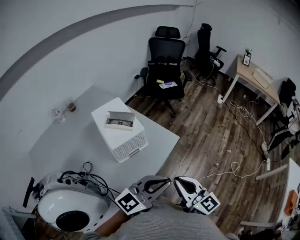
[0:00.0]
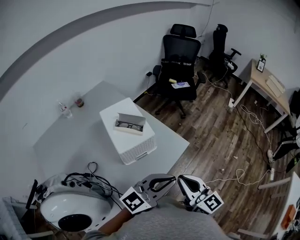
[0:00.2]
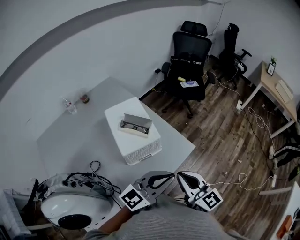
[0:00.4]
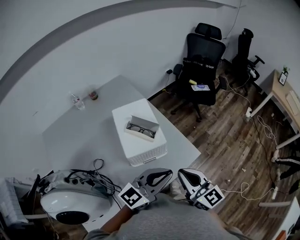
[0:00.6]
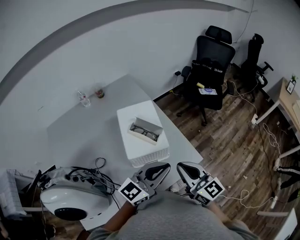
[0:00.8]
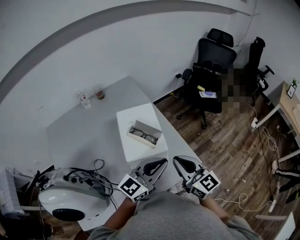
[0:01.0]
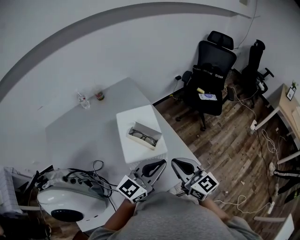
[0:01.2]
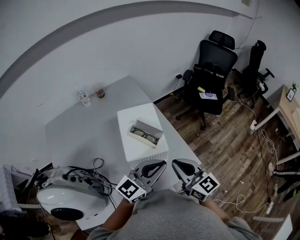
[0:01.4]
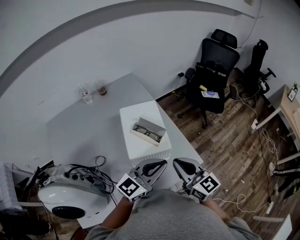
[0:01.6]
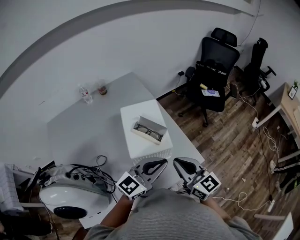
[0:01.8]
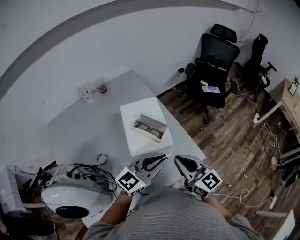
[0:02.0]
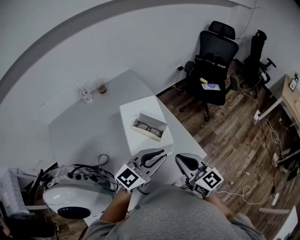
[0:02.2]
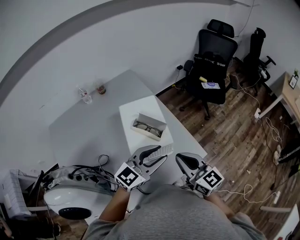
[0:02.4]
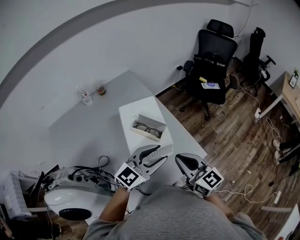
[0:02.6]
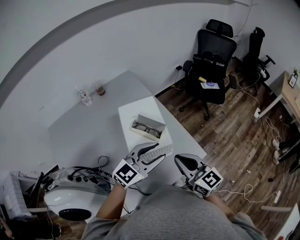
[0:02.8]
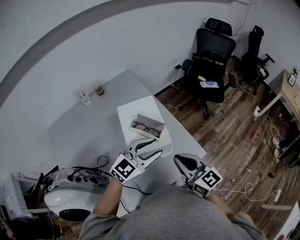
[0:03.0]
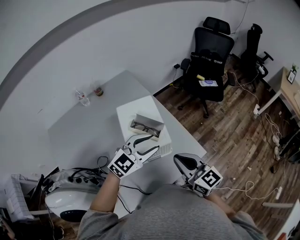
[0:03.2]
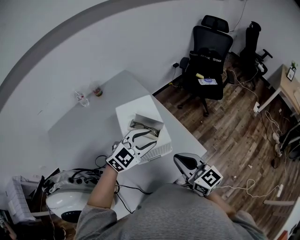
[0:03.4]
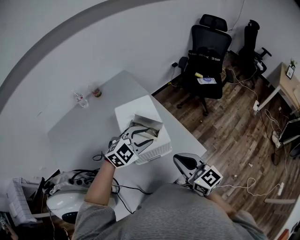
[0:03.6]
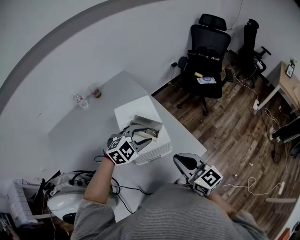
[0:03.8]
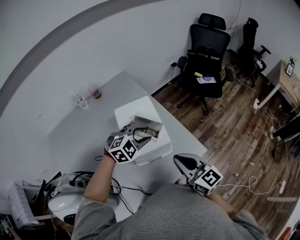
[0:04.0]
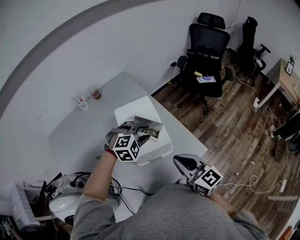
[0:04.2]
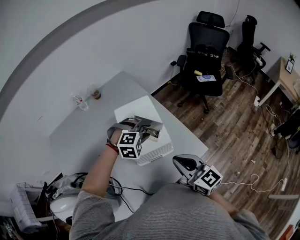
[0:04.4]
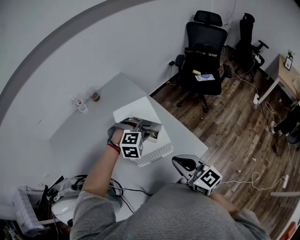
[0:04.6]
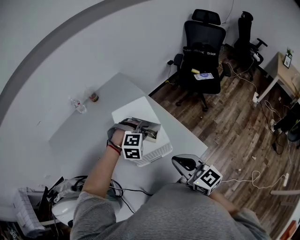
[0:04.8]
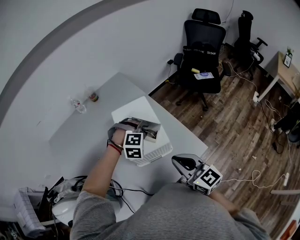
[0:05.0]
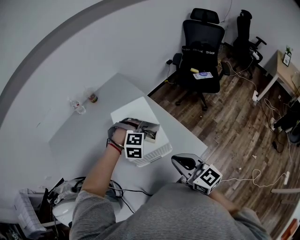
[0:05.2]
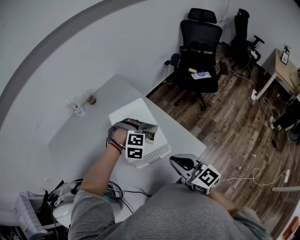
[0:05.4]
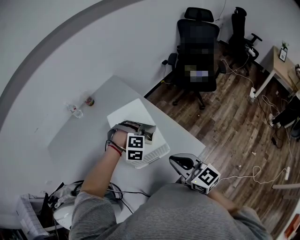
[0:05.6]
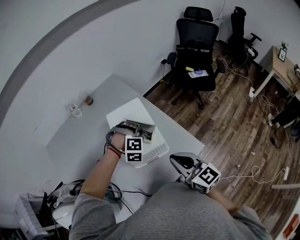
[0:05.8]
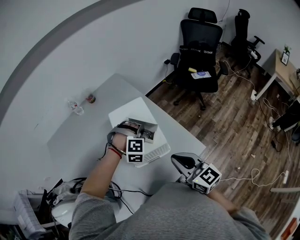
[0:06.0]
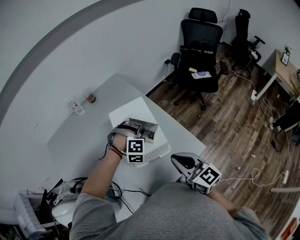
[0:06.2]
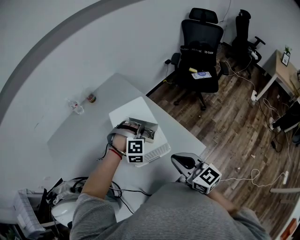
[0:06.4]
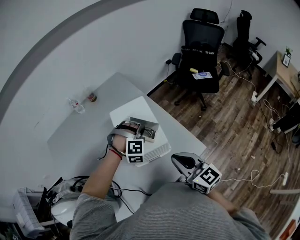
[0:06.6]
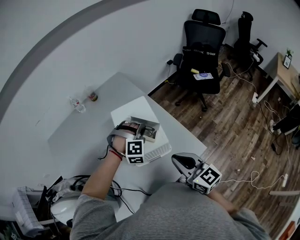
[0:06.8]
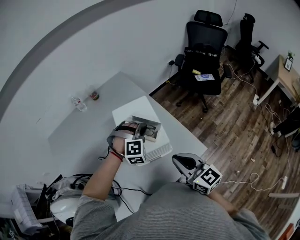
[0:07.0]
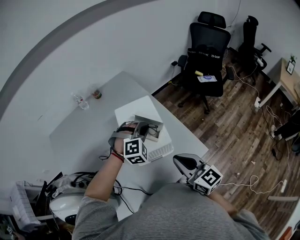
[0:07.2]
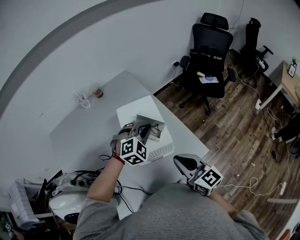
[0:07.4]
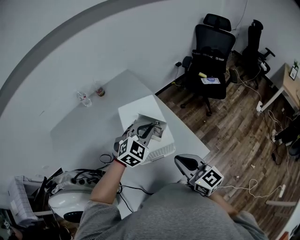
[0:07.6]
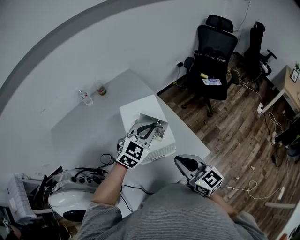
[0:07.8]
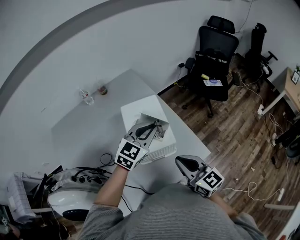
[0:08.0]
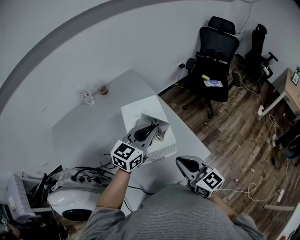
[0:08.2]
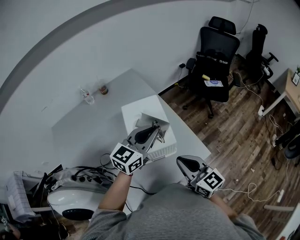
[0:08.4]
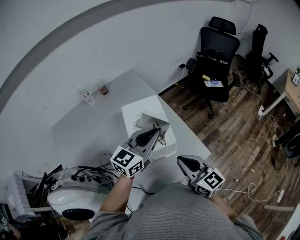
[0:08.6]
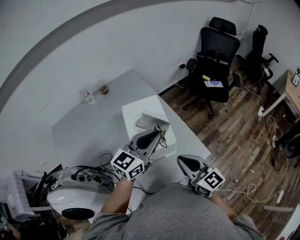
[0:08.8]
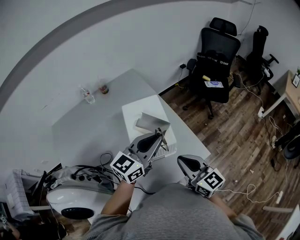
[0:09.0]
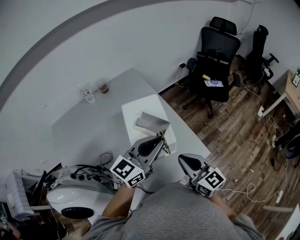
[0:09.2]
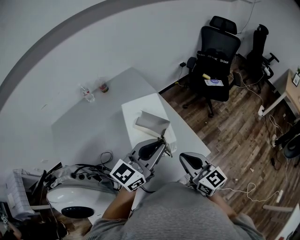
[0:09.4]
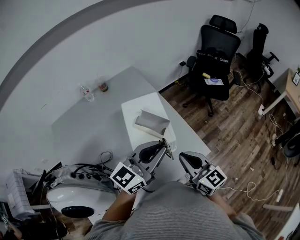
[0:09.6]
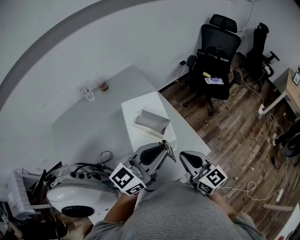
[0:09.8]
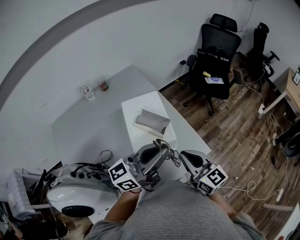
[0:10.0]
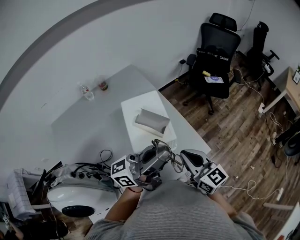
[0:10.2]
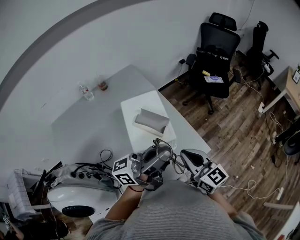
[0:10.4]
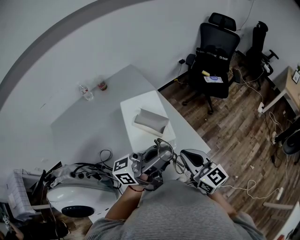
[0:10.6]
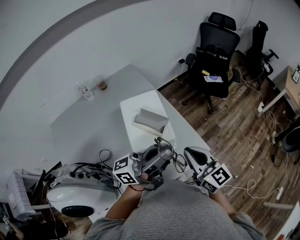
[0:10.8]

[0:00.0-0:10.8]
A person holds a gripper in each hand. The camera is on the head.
0:00.0 to 0:01.6: The right gripper shifts by about 25 cm, and changes its angle by approximately 20 degrees. The left gripper changes place by approximately 25 cm, and changes its angle by about 30 degrees.
0:01.6 to 0:03.0: The left gripper shifts by about 5 cm, turns by about 20 degrees, and opens up.
0:03.0 to 0:04.6: The left gripper heads forward and downward, covering about 15 cm, and tilts its fingers some 40 degrees downward.
0:04.6 to 0:06.2: The left gripper closes up.
0:06.2 to 0:07.8: The left gripper is displaced upward by approximately 10 cm, and rotates around the line of its fingers by roughly 60 degrees, counterclockwise from behind.
0:07.8 to 0:09.2: The left gripper travels backward and upward by about 10 cm, and changes its angle by some 40 degrees.
0:09.2 to 0:10.8: The left gripper heads upward, covering roughly 5 cm, and tilts its fingers roughly 30 degrees upward.

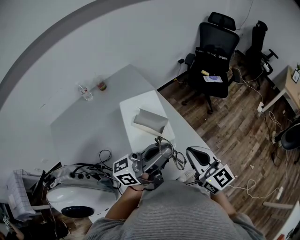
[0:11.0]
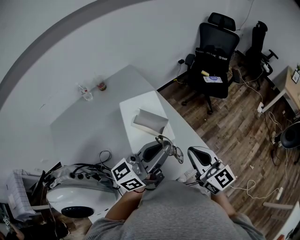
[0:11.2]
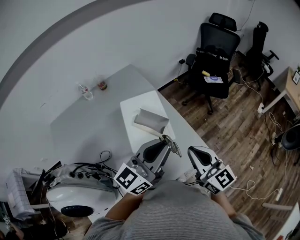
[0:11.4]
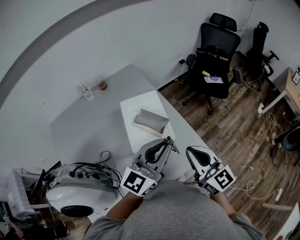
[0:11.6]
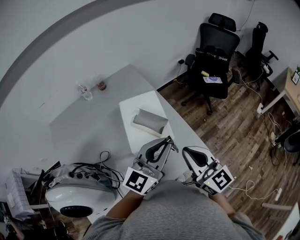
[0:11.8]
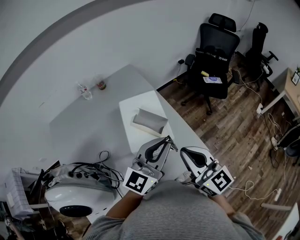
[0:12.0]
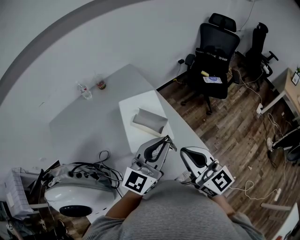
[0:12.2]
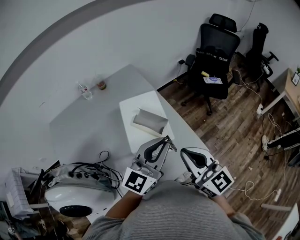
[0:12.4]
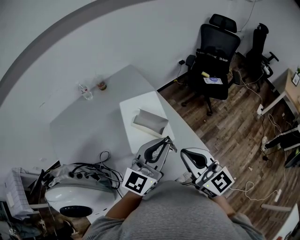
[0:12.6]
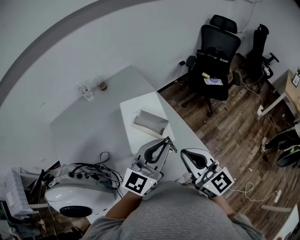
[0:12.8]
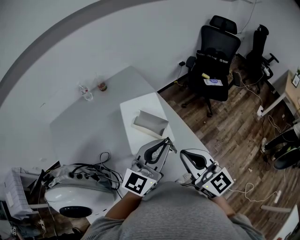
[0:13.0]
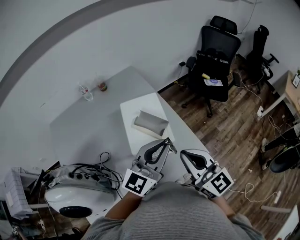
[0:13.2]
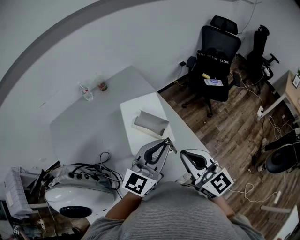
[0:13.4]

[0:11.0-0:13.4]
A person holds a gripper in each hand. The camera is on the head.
0:11.0 to 0:12.2: The right gripper moves some 5 cm. The left gripper rolls clockwise, seen from behind, by some 50 degrees.
0:12.2 to 0:13.4: The two grippers keep their place.

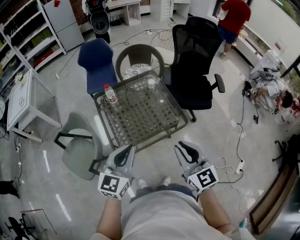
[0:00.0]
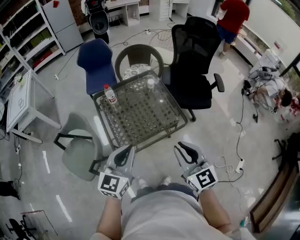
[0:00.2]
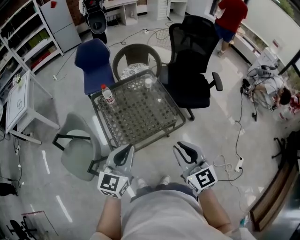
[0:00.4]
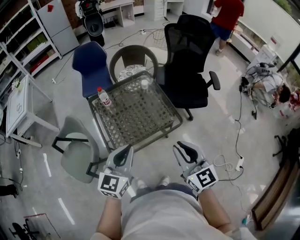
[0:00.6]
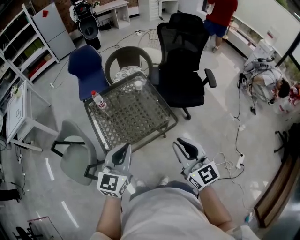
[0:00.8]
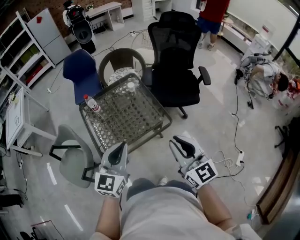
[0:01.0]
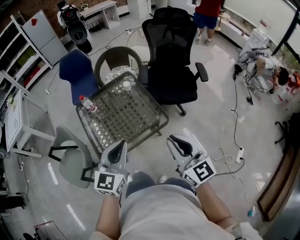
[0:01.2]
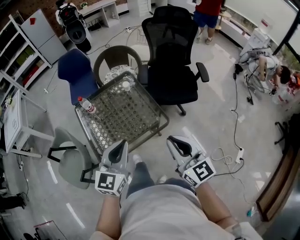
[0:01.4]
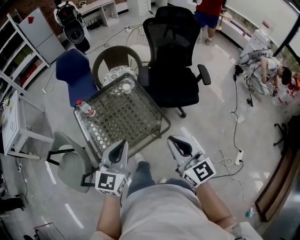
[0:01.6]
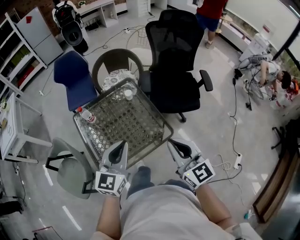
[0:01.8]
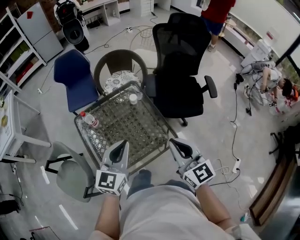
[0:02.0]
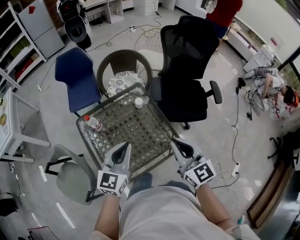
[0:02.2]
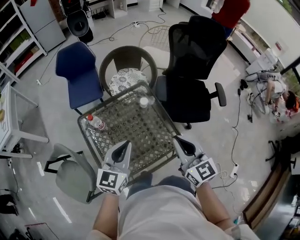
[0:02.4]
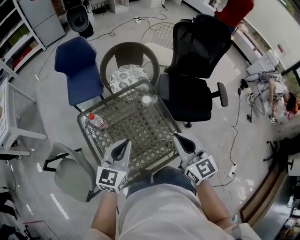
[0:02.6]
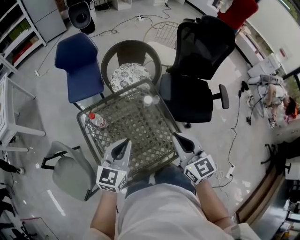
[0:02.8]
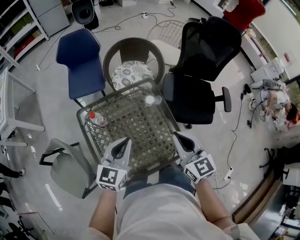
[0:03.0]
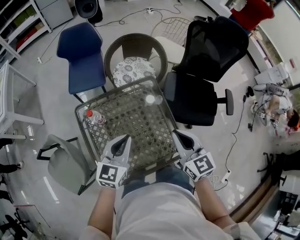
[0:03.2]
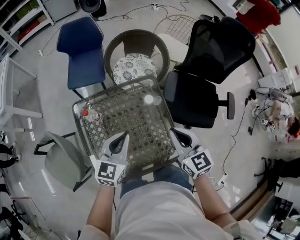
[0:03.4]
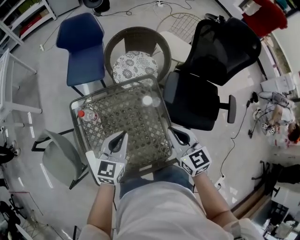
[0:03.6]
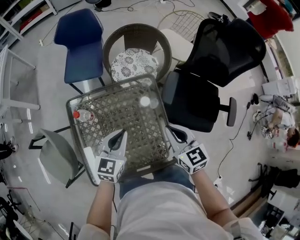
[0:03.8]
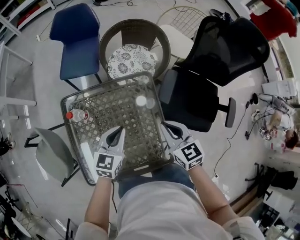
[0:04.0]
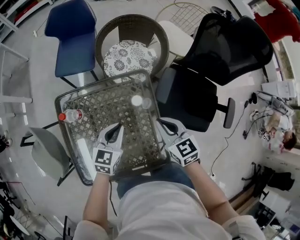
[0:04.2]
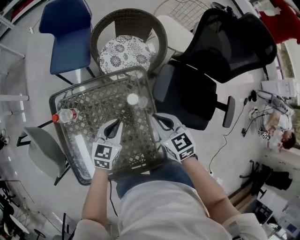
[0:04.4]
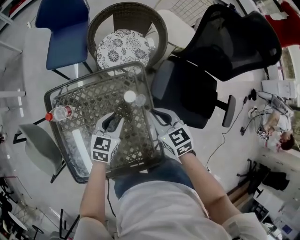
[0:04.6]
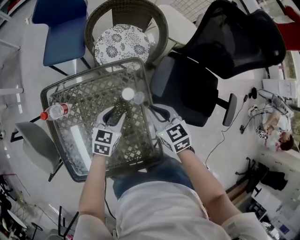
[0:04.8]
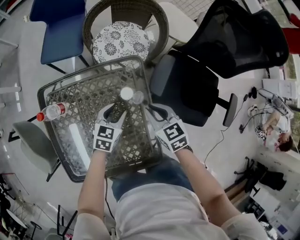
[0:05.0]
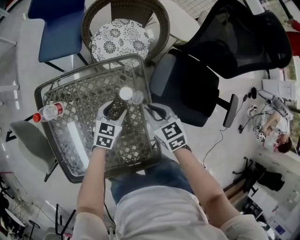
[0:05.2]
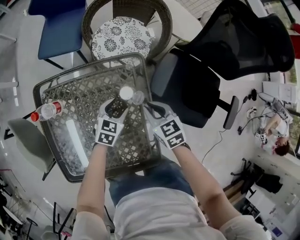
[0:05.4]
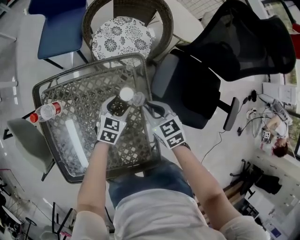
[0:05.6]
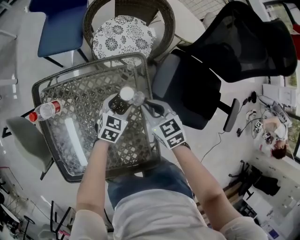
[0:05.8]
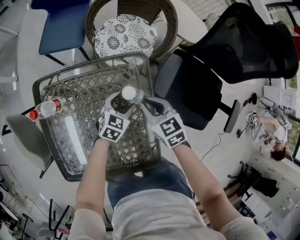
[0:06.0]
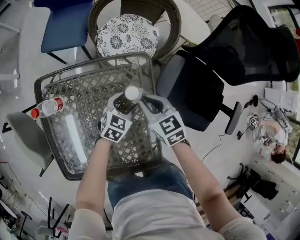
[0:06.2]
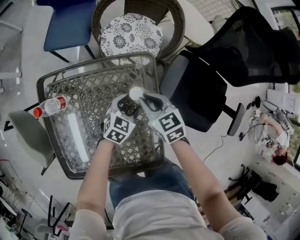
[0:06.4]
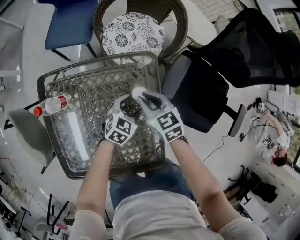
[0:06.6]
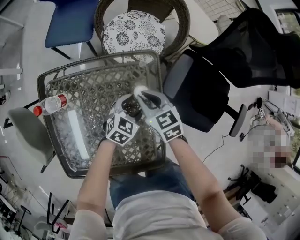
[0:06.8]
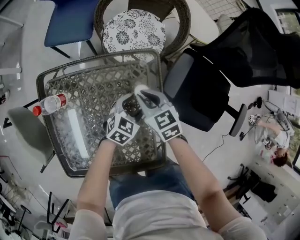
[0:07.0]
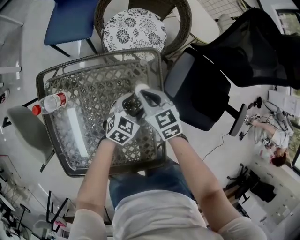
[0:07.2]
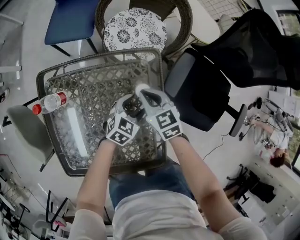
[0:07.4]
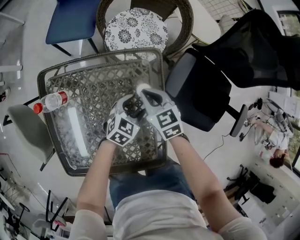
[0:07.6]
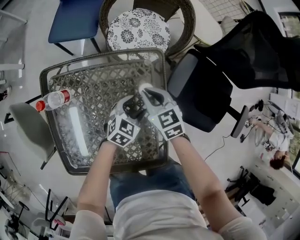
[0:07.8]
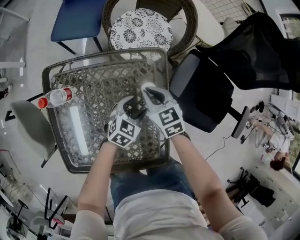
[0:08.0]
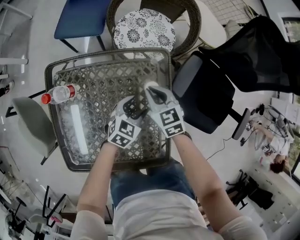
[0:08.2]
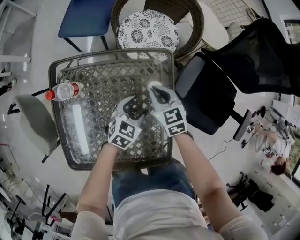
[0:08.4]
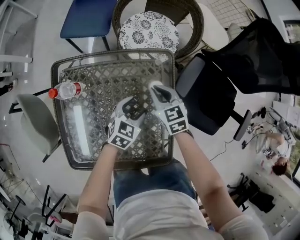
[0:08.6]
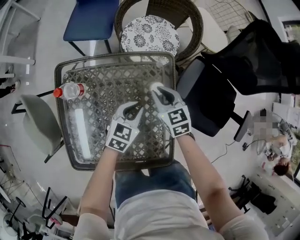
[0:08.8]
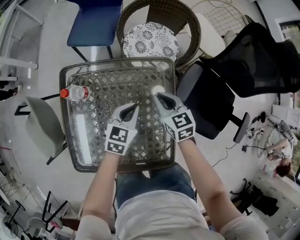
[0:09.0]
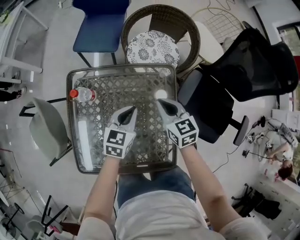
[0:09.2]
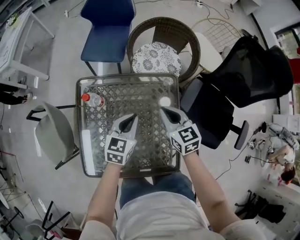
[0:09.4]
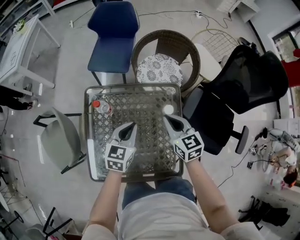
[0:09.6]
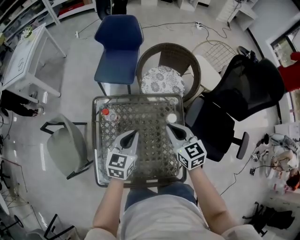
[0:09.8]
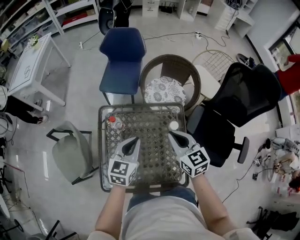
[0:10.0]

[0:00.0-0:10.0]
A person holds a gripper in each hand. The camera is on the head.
0:00.0 to 0:01.4: Both grippers move to the right, roughly 15 cm.
0:01.4 to 0:02.8: The grippers both shift forward and to the left by roughly 30 cm.
0:02.8 to 0:04.2: The left gripper goes about 20 cm downward, forward and to the right. The right gripper is displaced forward and downward by some 25 cm, and turns by approximately 30 degrees.
0:04.2 to 0:05.8: The right gripper shifts some 15 cm downward. Meanwhile the left gripper heads downward and to the right, covering some 20 cm, and opens.
0:05.8 to 0:07.2: The right gripper goes some 5 cm to the left.
0:07.2 to 0:08.6: The left gripper is displaced to the left by approximately 5 cm.
0:08.6 to 0:10.0: The left gripper travels upward and to the left by some 30 cm, swivels approximately 30 degrees, and closes its fingers. The right gripper travels upward by about 25 cm.
